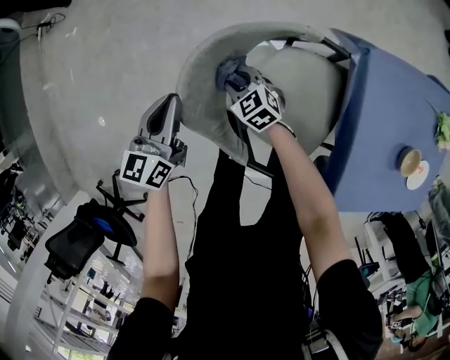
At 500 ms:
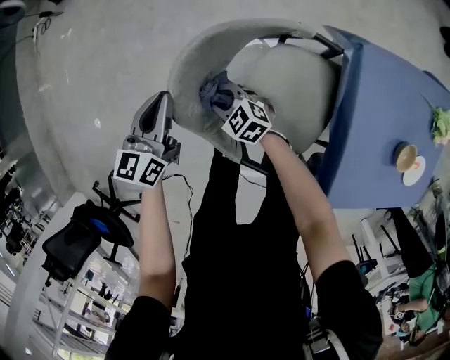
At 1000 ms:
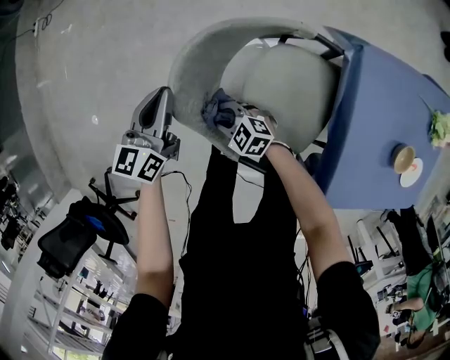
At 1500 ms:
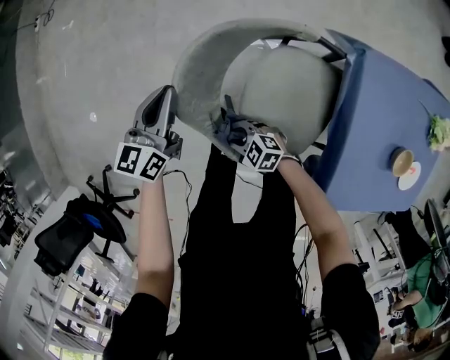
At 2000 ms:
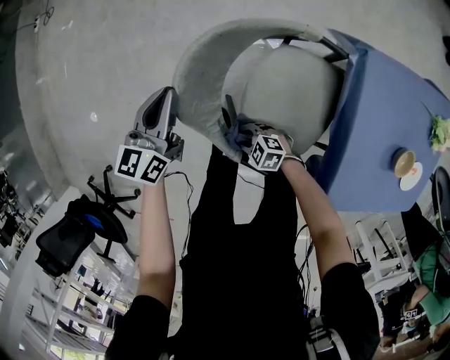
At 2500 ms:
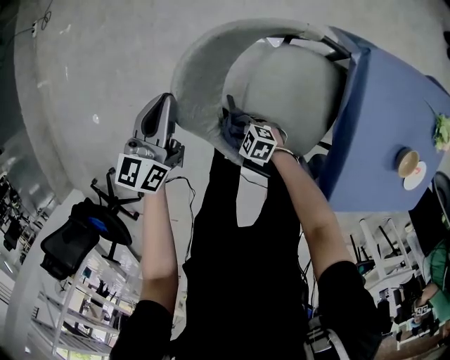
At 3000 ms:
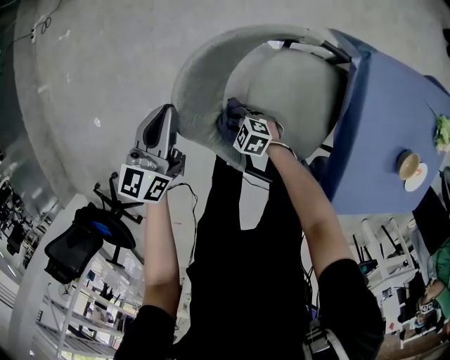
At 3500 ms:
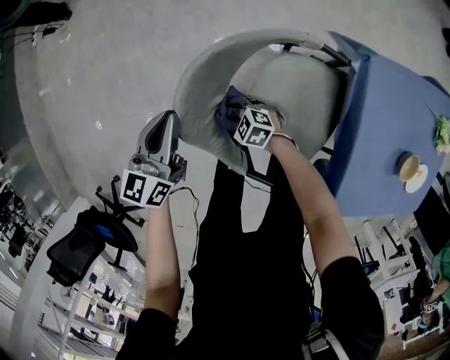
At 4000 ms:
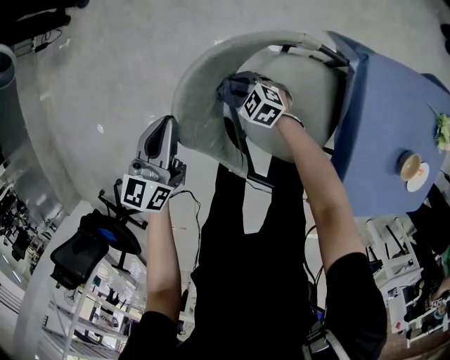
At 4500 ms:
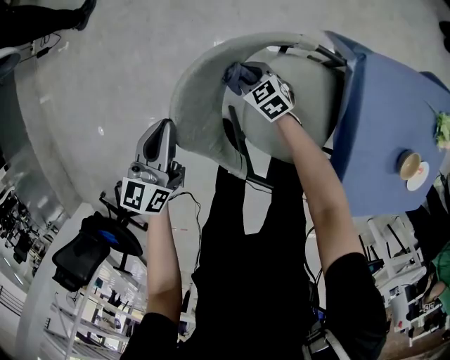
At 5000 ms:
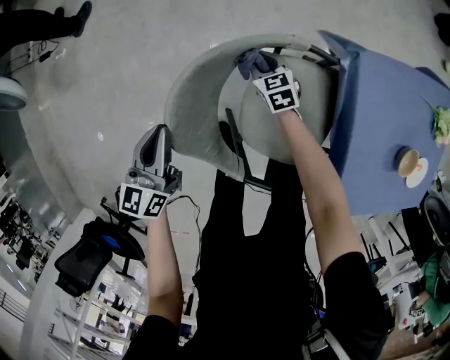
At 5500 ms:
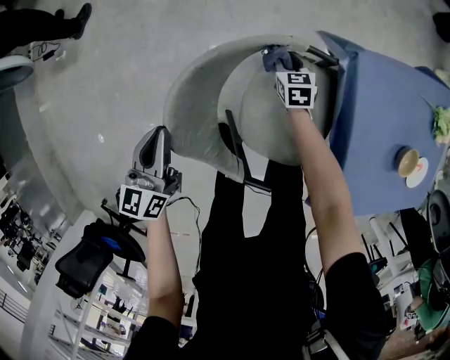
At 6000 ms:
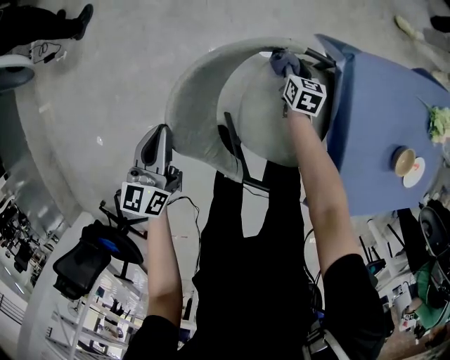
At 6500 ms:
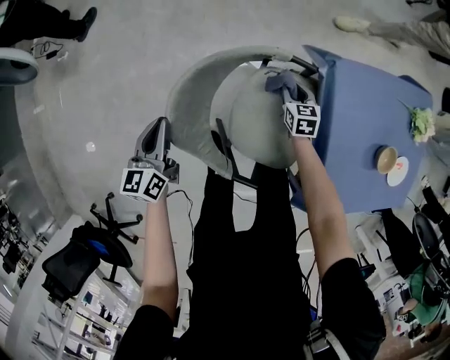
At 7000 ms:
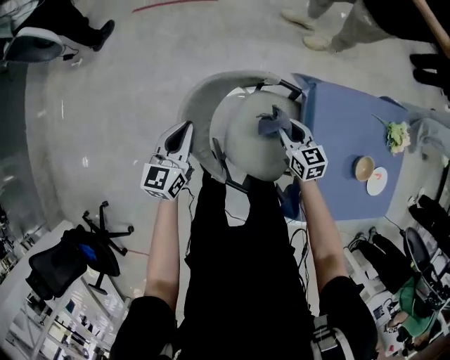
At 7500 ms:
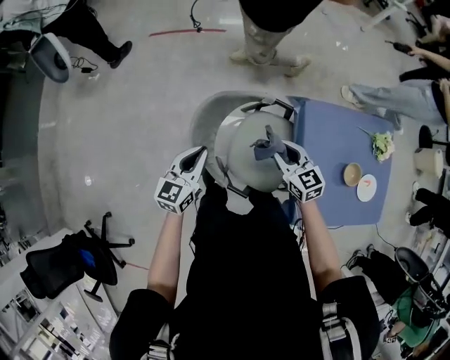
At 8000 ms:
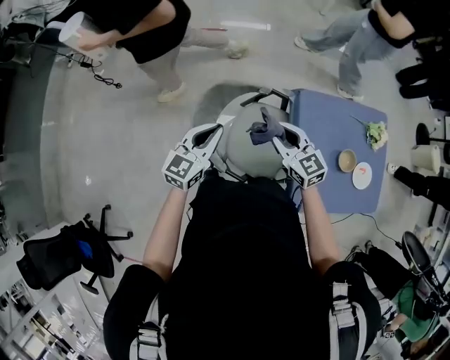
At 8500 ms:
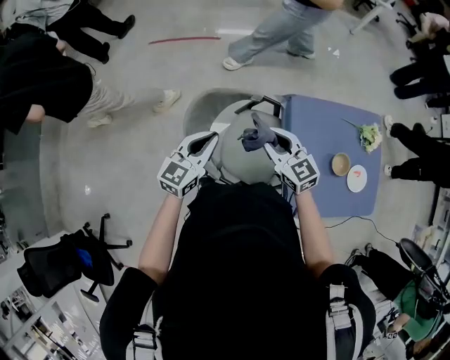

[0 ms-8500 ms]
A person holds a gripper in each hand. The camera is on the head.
0 ms to 2000 ms: The right gripper heads backward, covering roughly 25 cm, and rotates roughly 40 degrees.
2000 ms to 4000 ms: The right gripper is displaced forward and to the right by some 25 cm, and rotates about 20 degrees.
4000 ms to 6500 ms: The right gripper changes place by roughly 25 cm, and swivels approximately 60 degrees.
6500 ms to 8500 ms: The left gripper is displaced upward, to the right and backward by about 30 cm, and rotates approximately 30 degrees. Meanwhile the right gripper is displaced upward and backward by some 50 cm, and rotates some 40 degrees.

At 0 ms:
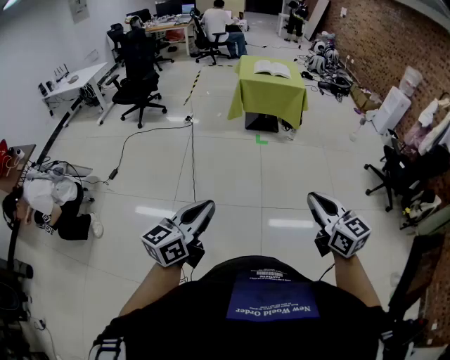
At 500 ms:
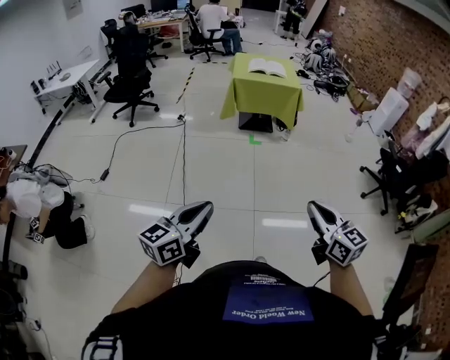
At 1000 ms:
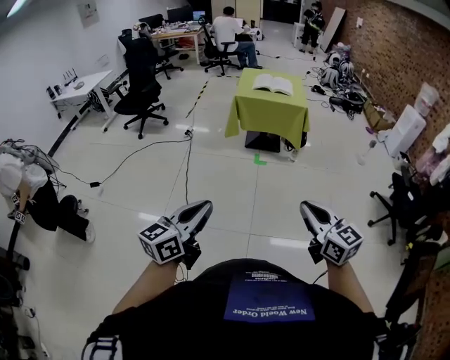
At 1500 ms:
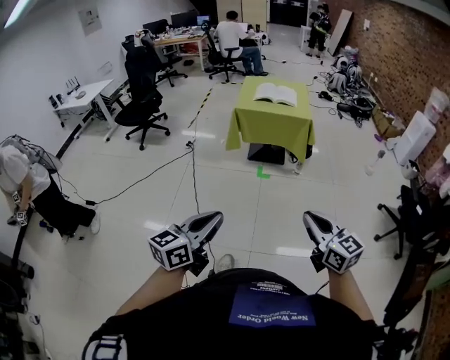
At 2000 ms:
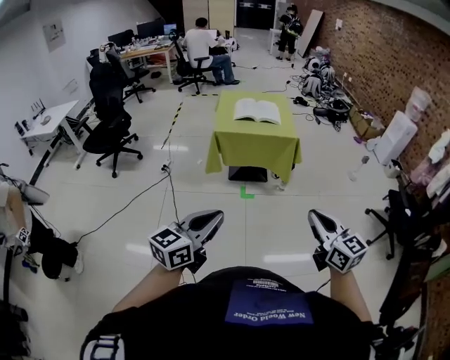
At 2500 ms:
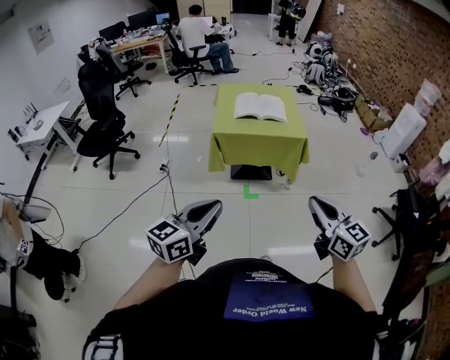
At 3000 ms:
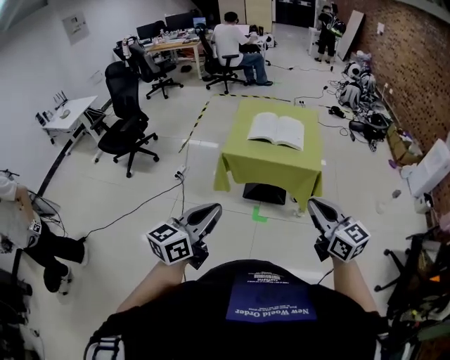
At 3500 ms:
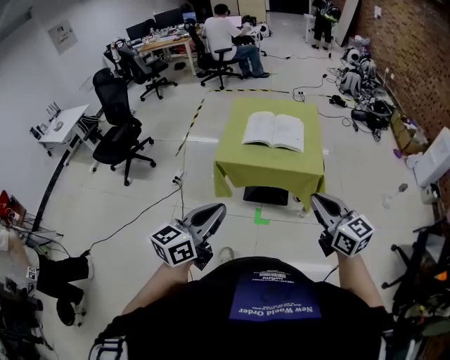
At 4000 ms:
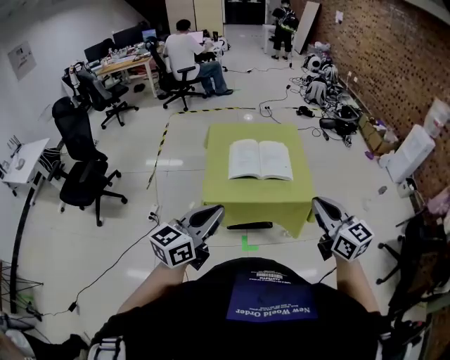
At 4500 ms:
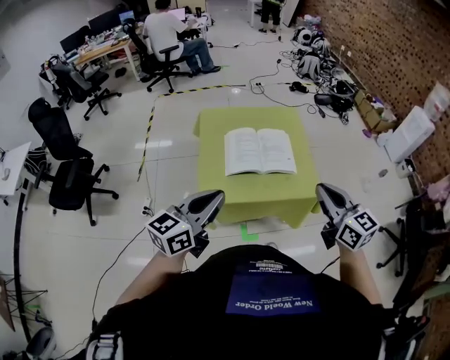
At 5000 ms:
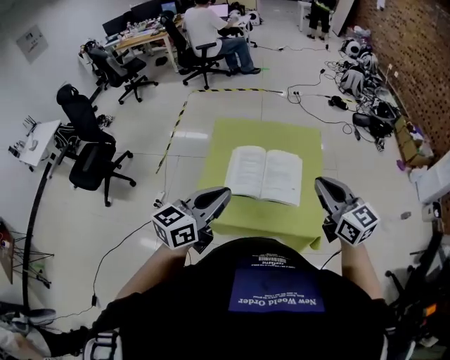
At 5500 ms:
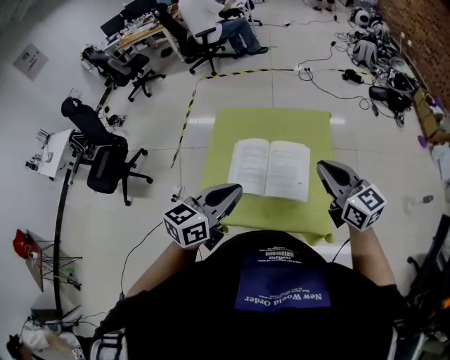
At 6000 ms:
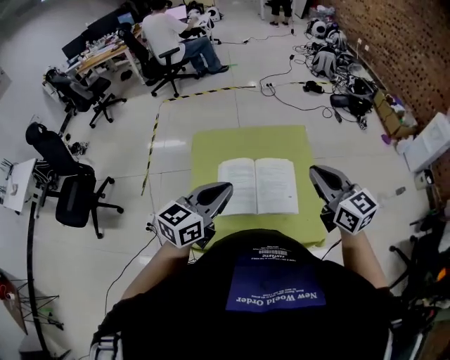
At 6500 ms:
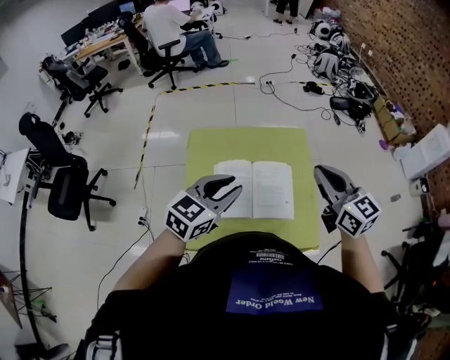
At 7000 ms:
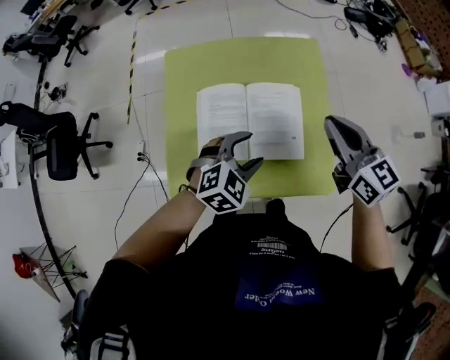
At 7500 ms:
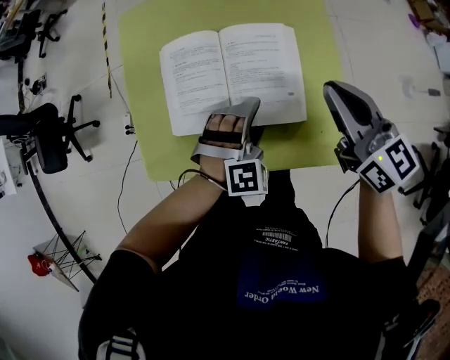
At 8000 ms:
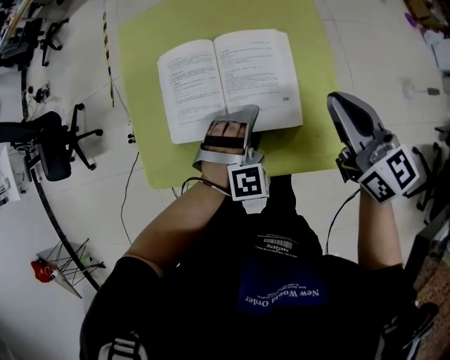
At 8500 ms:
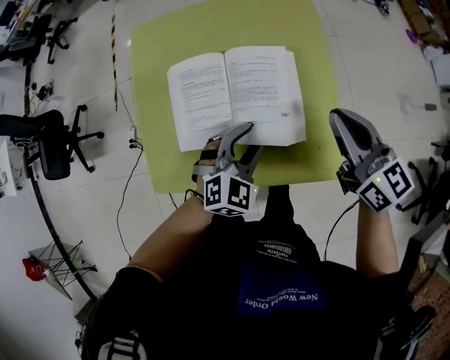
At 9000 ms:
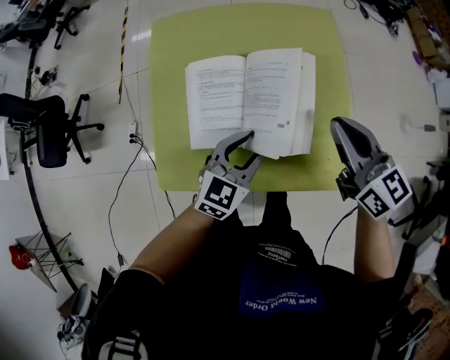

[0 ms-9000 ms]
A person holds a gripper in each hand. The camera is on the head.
0 ms to 2000 ms: Both grippers are carried forward, some 50 cm.
2000 ms to 4500 ms: The two grippers travel together, forward, about 70 cm.
4500 ms to 7000 ms: The right gripper travels forward by roughly 35 cm. The left gripper goes about 40 cm forward, downward and to the right, angles its fingers downward, by some 40 degrees, and opens its fingers.
7000 ms to 9000 ms: The grippers both shift downward by roughly 5 cm. The left gripper changes its angle by some 30 degrees.

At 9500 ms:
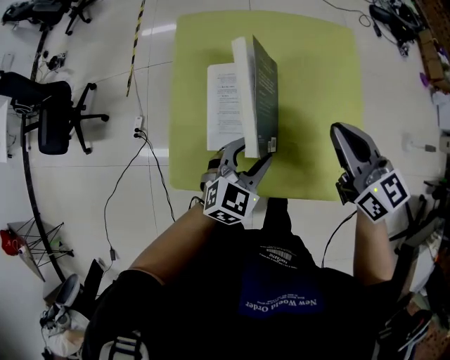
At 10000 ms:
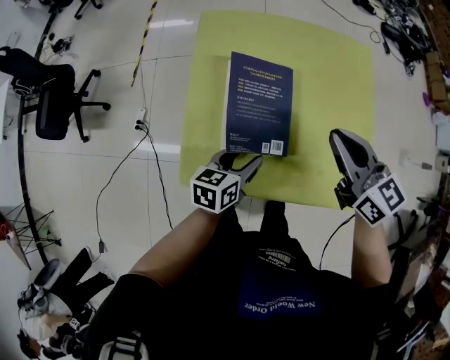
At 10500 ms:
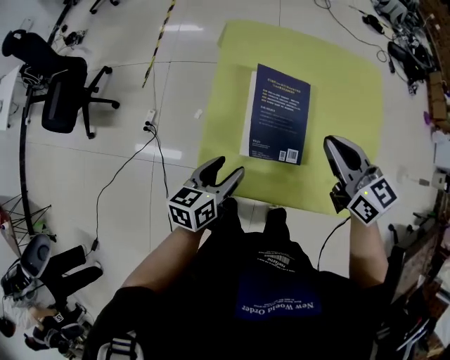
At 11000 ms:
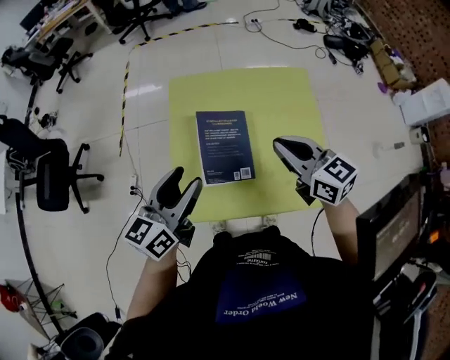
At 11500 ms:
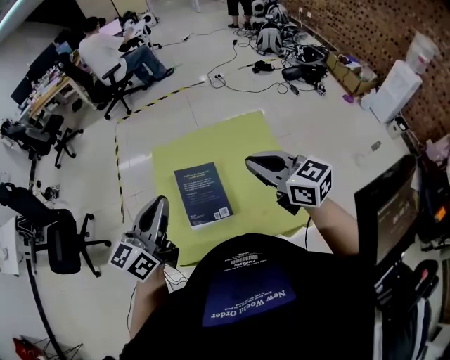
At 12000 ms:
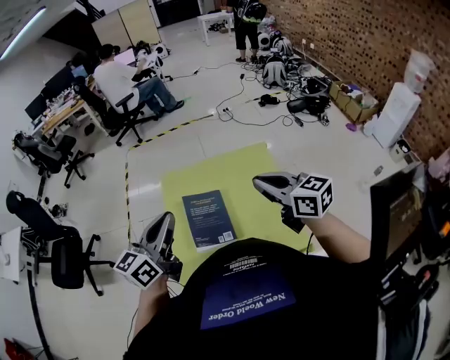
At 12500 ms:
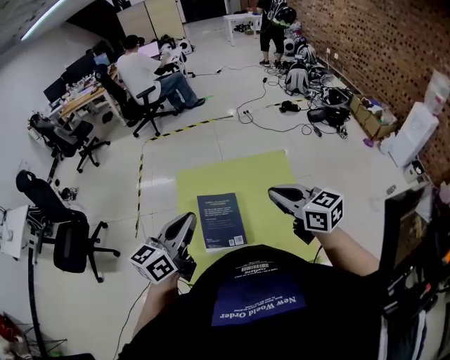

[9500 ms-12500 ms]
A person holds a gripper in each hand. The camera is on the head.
9500 ms to 11000 ms: The left gripper shifts about 25 cm upward and to the left, and rotates roughly 40 degrees. Meanwhile the right gripper shifts about 10 cm to the left and upward.
11000 ms to 12500 ms: The two grippers go some 15 cm upward and to the right. The left gripper closes.

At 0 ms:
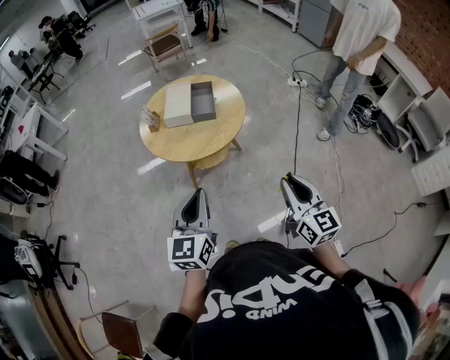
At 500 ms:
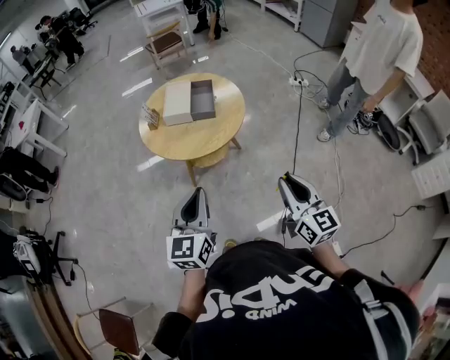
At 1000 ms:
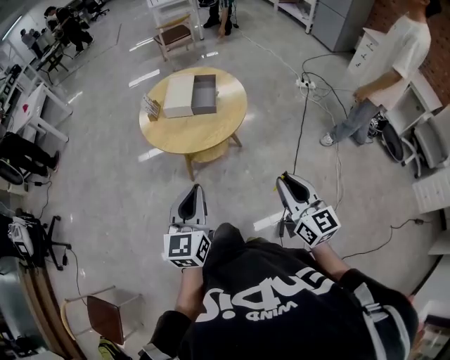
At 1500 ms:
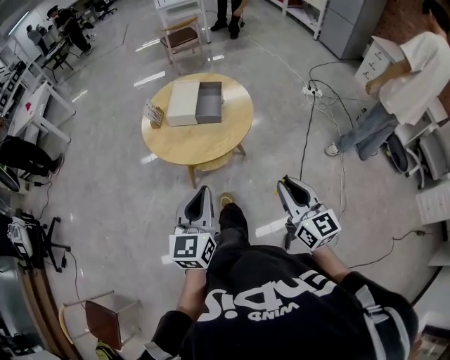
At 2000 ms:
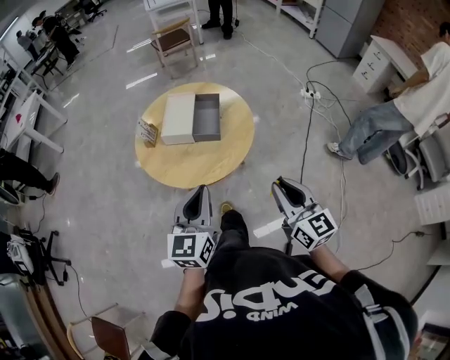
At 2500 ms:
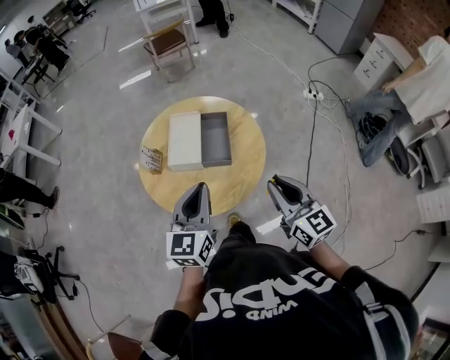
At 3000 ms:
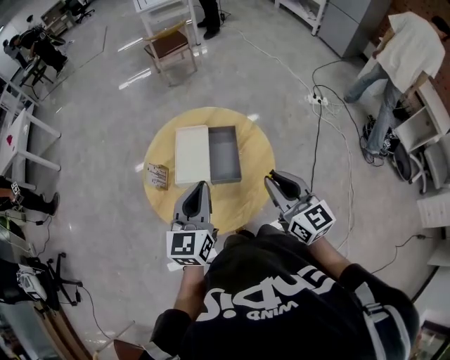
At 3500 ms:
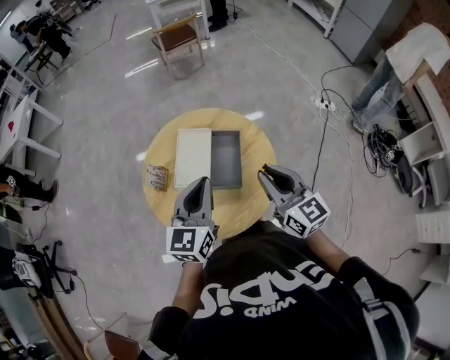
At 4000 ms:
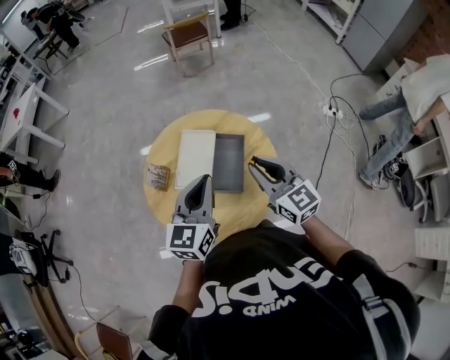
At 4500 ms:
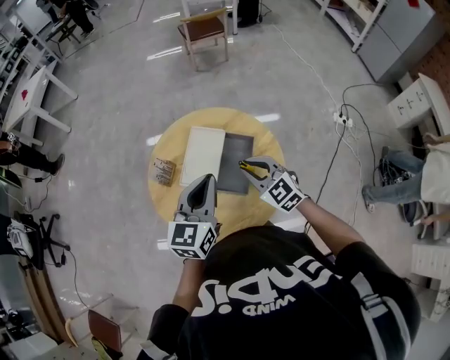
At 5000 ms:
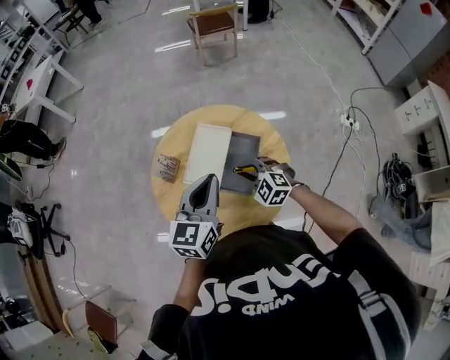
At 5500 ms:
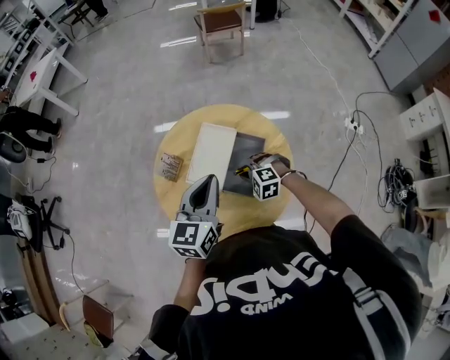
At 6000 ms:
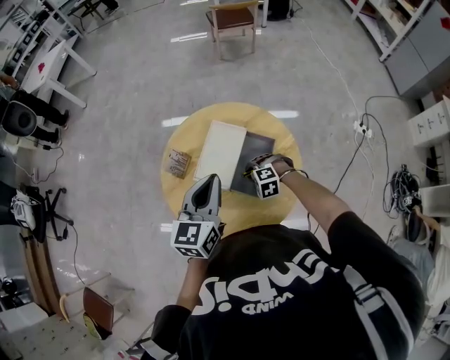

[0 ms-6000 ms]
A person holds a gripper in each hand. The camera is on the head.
0 ms to 2000 ms: The grippers both shift forward by about 15 cm.
2000 ms to 4000 ms: Both grippers travel together forward, approximately 35 cm.
4000 ms to 6000 ms: The right gripper shifts roughly 30 cm downward, and tips its fingers downward by about 60 degrees, while the left gripper changes place by some 5 cm.
